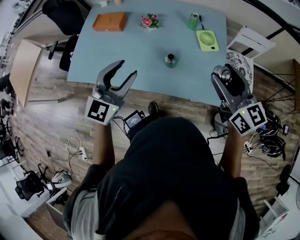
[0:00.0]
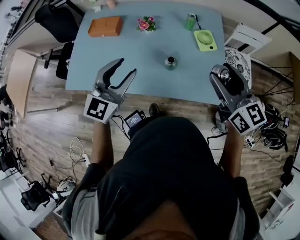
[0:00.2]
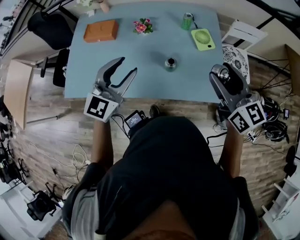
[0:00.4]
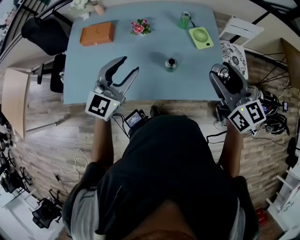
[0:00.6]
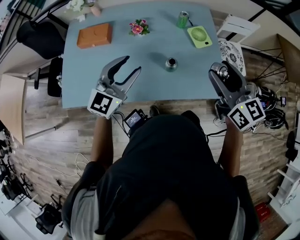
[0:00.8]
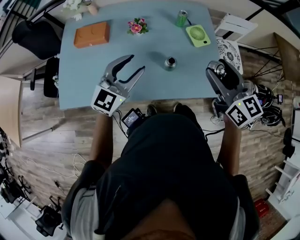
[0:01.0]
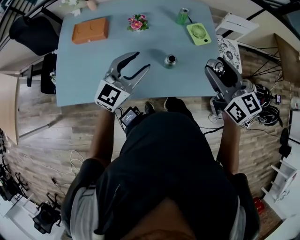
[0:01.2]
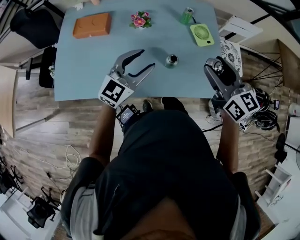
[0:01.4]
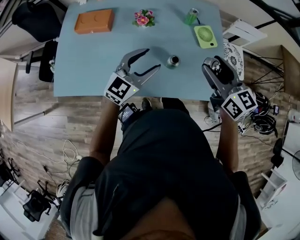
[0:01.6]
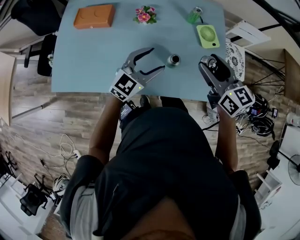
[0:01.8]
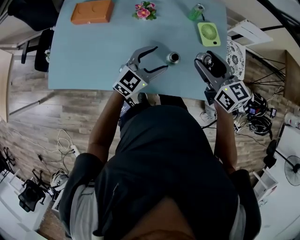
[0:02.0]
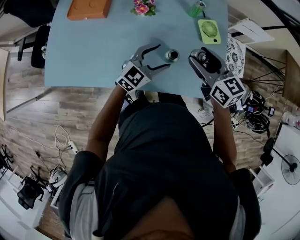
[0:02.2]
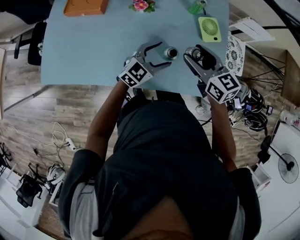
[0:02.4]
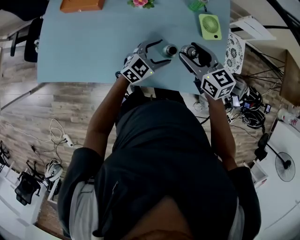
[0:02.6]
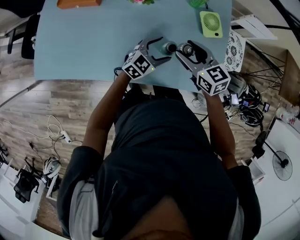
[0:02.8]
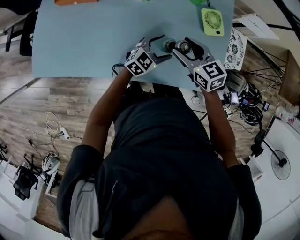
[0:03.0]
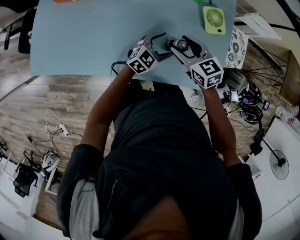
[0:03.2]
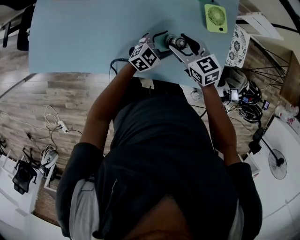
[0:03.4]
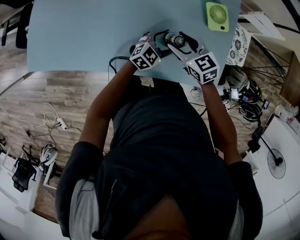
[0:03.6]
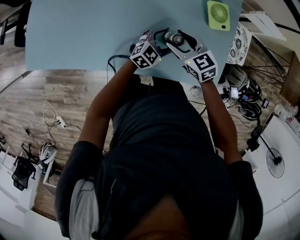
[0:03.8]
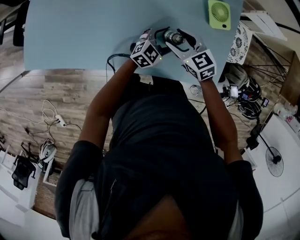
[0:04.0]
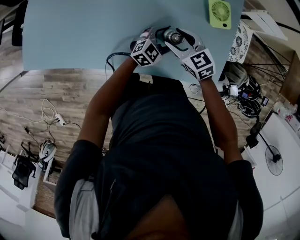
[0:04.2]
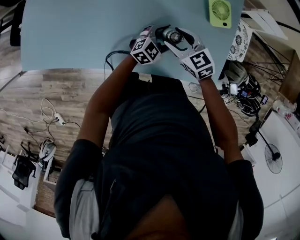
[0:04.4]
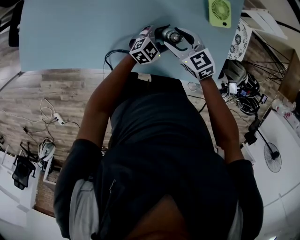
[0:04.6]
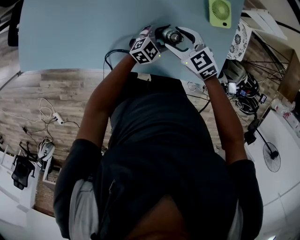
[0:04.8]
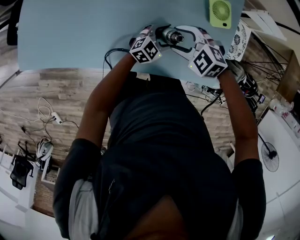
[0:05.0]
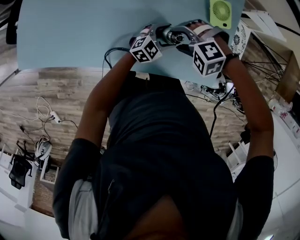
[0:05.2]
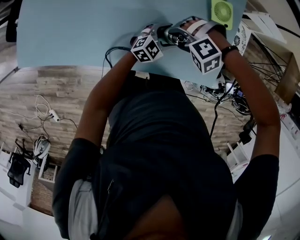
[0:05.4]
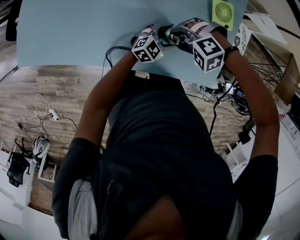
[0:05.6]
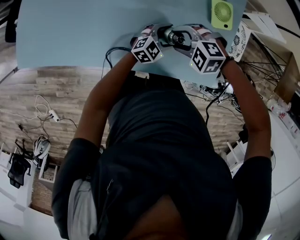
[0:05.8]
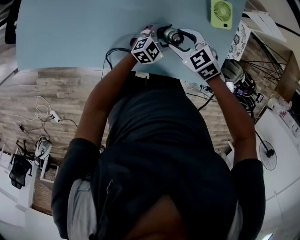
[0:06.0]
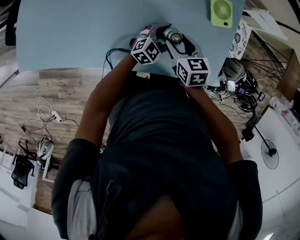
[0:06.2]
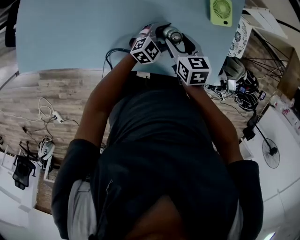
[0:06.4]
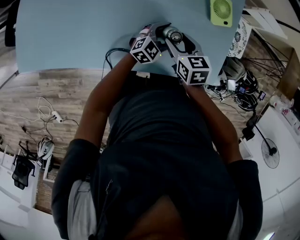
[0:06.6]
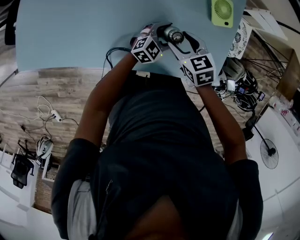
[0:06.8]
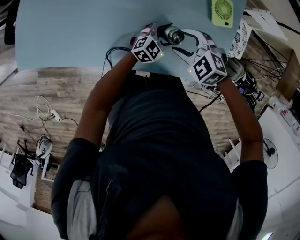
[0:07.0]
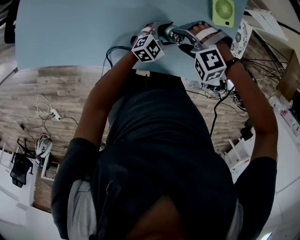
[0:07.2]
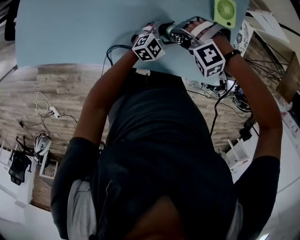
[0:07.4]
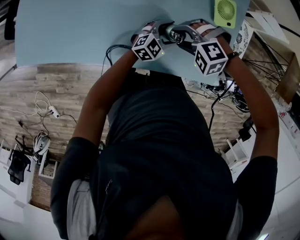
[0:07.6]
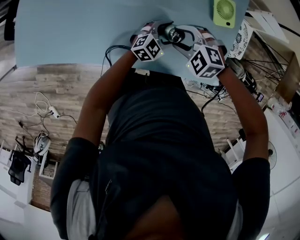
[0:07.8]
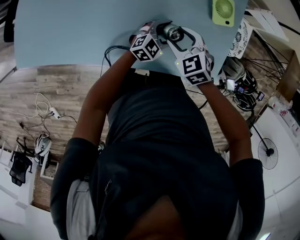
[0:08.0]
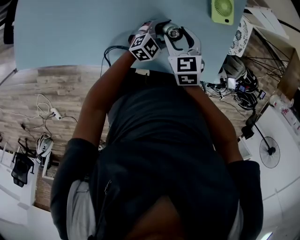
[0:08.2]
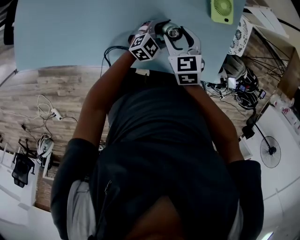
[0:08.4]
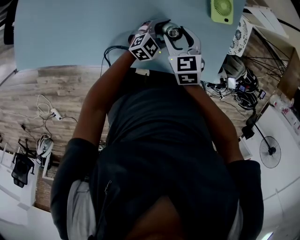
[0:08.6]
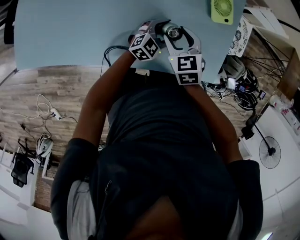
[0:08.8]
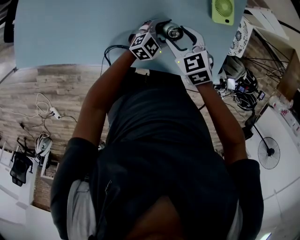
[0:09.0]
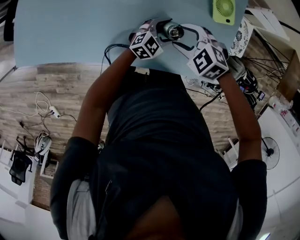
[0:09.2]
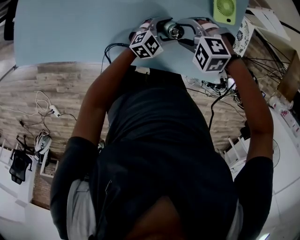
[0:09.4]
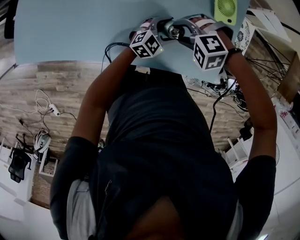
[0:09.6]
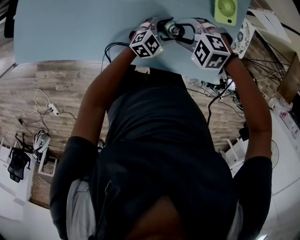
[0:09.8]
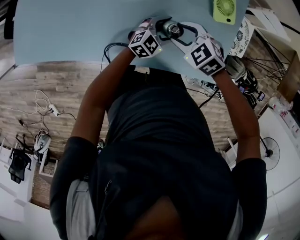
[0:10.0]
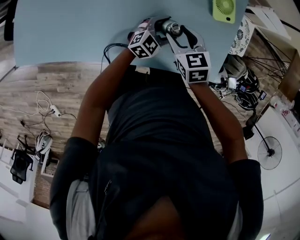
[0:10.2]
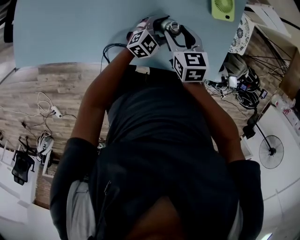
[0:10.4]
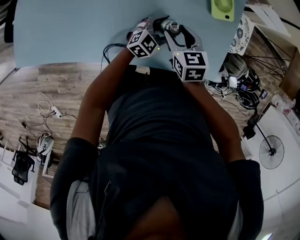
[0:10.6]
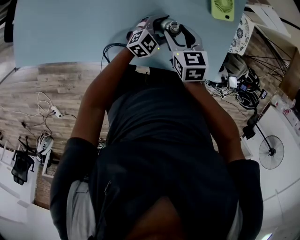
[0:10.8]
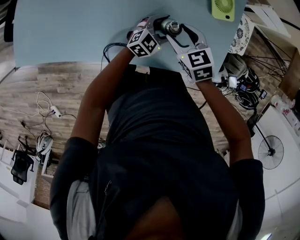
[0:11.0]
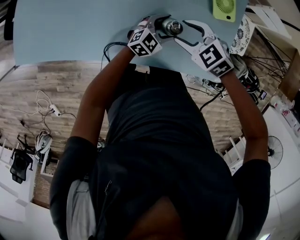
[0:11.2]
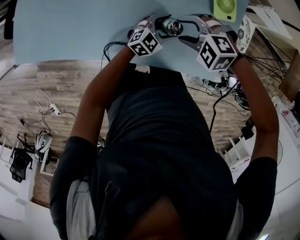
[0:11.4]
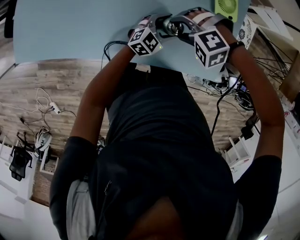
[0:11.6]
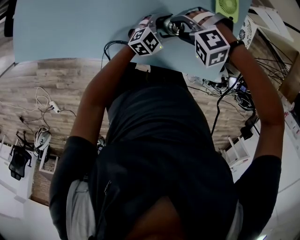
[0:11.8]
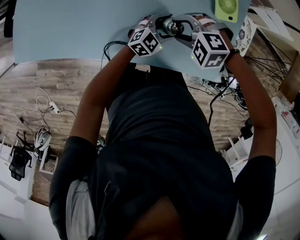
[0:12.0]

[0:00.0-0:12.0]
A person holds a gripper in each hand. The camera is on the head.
0:00.0 to 0:01.6: The left gripper heads forward and downward, covering about 15 cm, and swivels roughly 20 degrees. Meanwhile the right gripper travels to the left, forward and downward by some 15 cm.
0:01.6 to 0:03.0: The left gripper is displaced downward and to the right by approximately 25 cm. Meanwhile the right gripper shifts roughly 20 cm downward, and changes its angle by about 20 degrees.
0:03.0 to 0:04.4: The two grippers go some 10 cm downward.
0:06.0 to 0:07.6: The right gripper rolls counterclockwise, seen from behind, by about 50 degrees.
0:07.6 to 0:09.0: The right gripper rotates around the line of its fingers by some 60 degrees, clockwise from behind.
0:09.0 to 0:10.4: The right gripper swivels roughly 30 degrees.
0:10.4 to 0:12.0: The right gripper rotates around the line of its fingers by approximately 70 degrees, counterclockwise from behind.

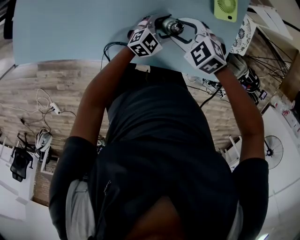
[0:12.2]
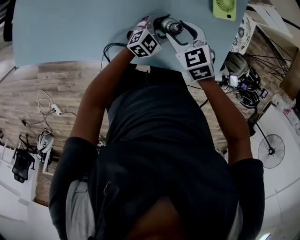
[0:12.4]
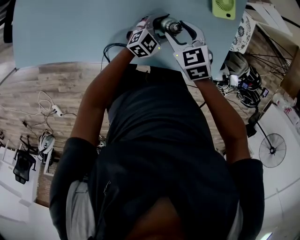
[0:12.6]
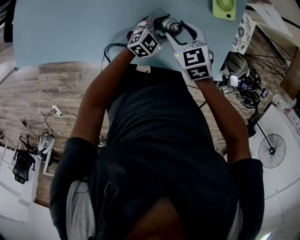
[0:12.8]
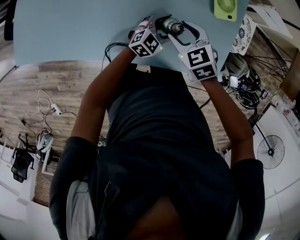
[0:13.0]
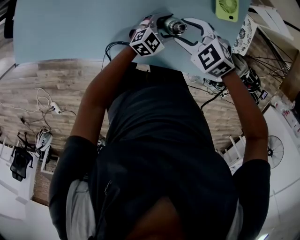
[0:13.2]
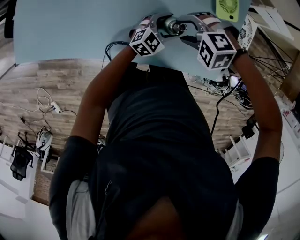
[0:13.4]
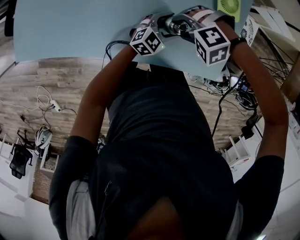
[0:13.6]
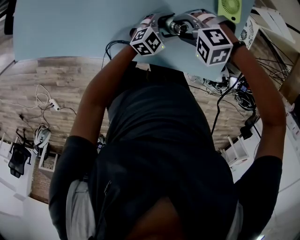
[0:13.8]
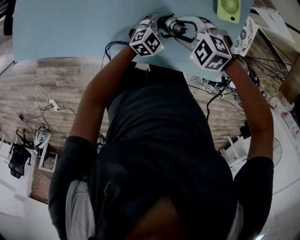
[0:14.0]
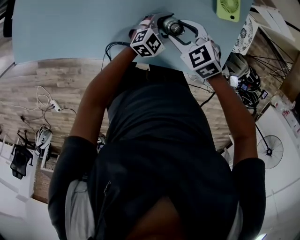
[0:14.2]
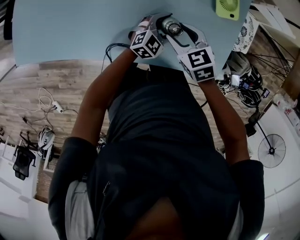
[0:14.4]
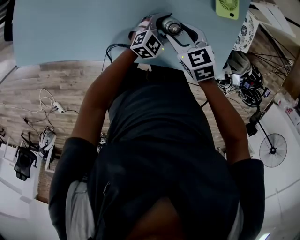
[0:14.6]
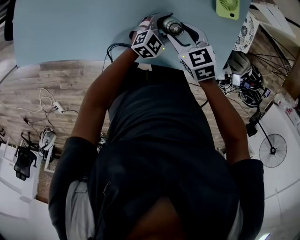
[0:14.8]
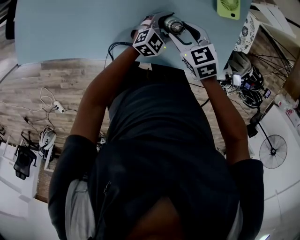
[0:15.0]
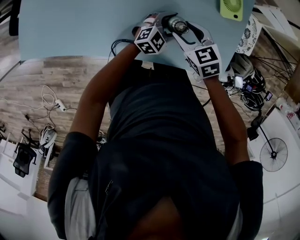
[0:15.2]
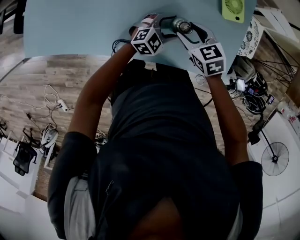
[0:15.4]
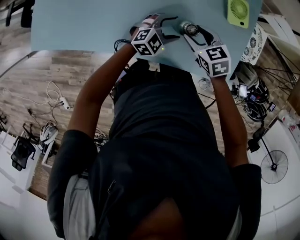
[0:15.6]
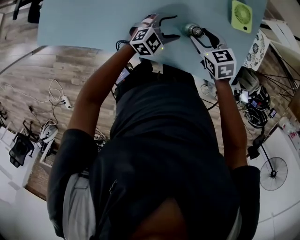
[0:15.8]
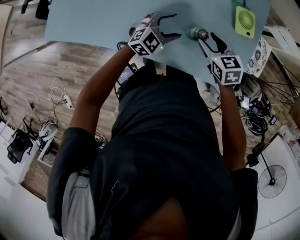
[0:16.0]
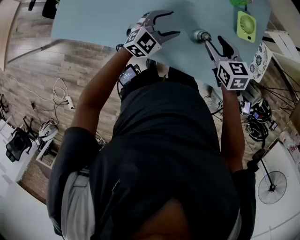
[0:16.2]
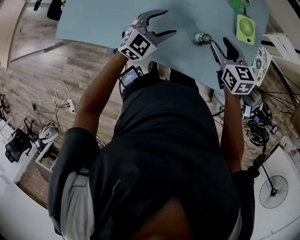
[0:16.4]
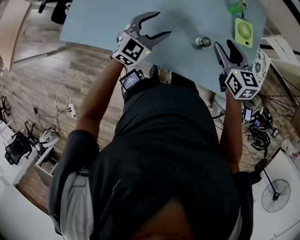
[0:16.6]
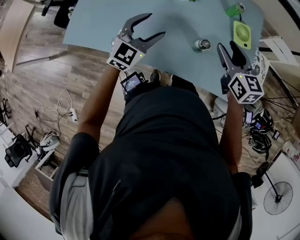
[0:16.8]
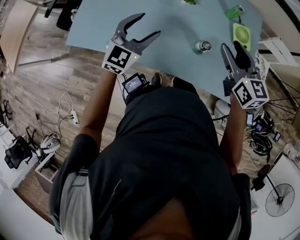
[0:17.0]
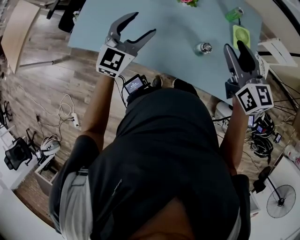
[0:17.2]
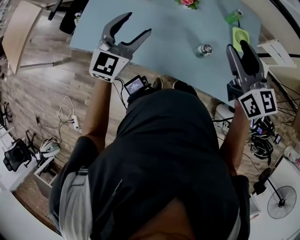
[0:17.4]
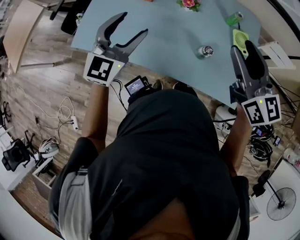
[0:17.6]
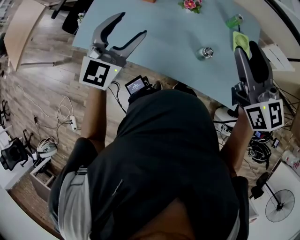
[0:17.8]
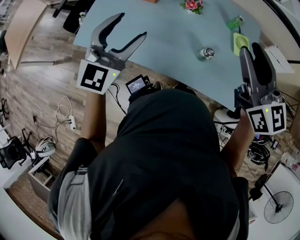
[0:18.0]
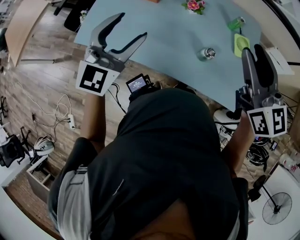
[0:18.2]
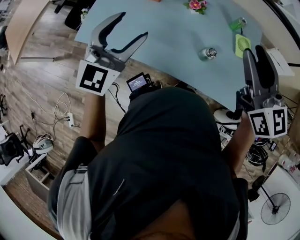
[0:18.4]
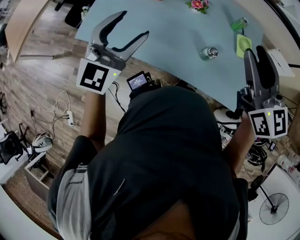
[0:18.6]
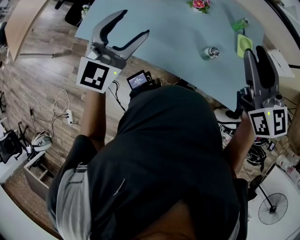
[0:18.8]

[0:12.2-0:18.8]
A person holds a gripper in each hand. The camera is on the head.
0:12.2 to 0:13.8: The right gripper swivels about 40 degrees.
0:13.8 to 0:15.4: The right gripper rotates around the line of its fingers by about 70 degrees, clockwise from behind.
0:15.4 to 0:17.2: The left gripper goes some 40 cm upward and to the left, and turns by some 40 degrees; the right gripper is displaced upward by some 30 cm, and tilts its fingers approximately 40 degrees upward.
0:17.2 to 0:18.8: The left gripper is displaced upward, backward and to the left by some 15 cm; the right gripper goes roughly 10 cm upward.

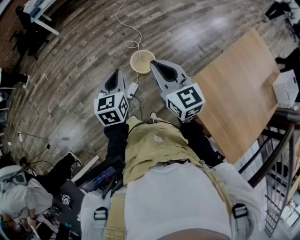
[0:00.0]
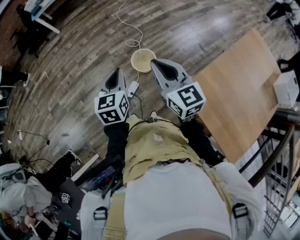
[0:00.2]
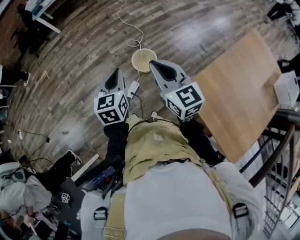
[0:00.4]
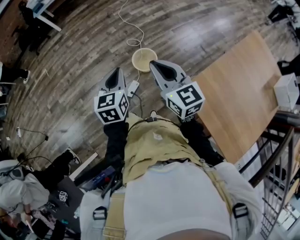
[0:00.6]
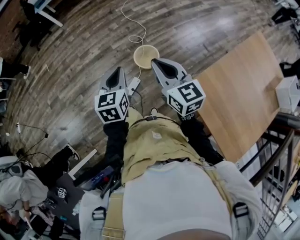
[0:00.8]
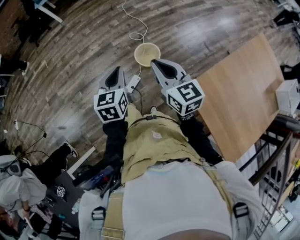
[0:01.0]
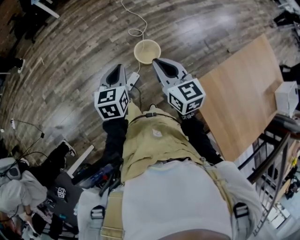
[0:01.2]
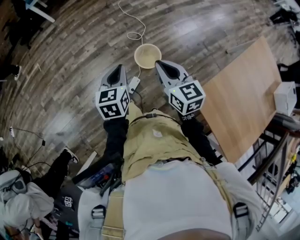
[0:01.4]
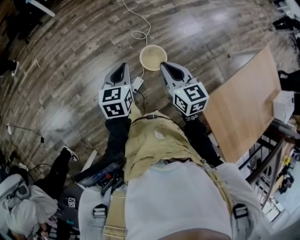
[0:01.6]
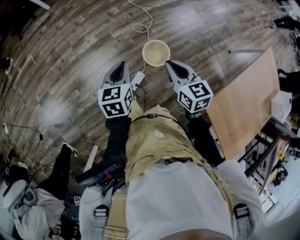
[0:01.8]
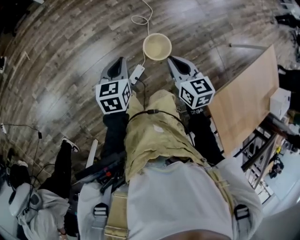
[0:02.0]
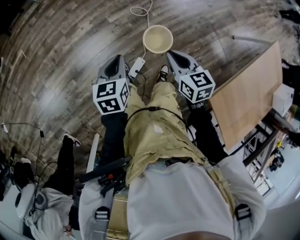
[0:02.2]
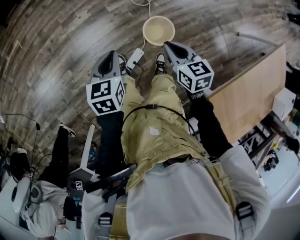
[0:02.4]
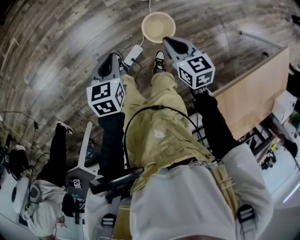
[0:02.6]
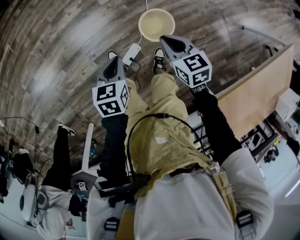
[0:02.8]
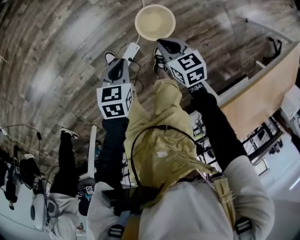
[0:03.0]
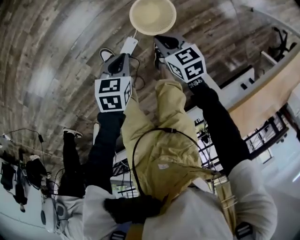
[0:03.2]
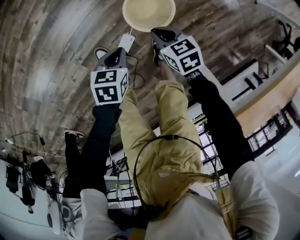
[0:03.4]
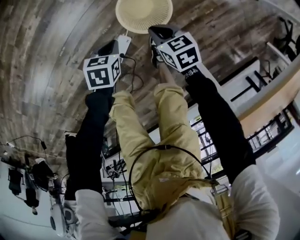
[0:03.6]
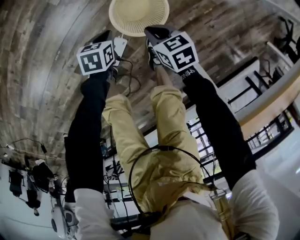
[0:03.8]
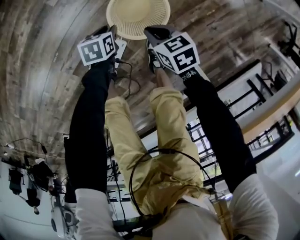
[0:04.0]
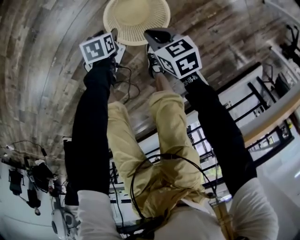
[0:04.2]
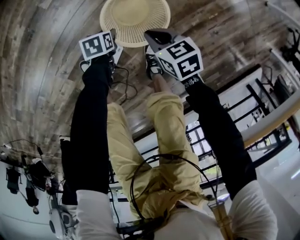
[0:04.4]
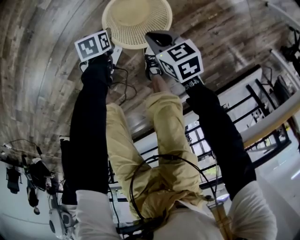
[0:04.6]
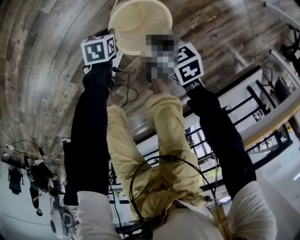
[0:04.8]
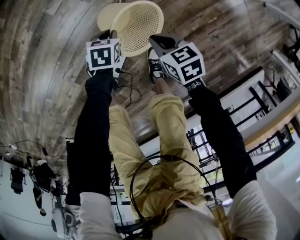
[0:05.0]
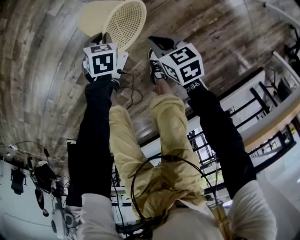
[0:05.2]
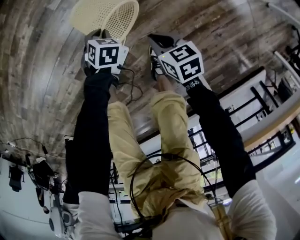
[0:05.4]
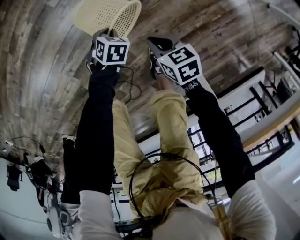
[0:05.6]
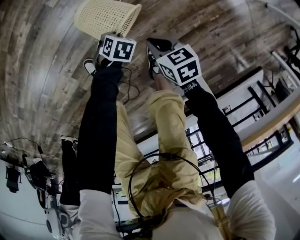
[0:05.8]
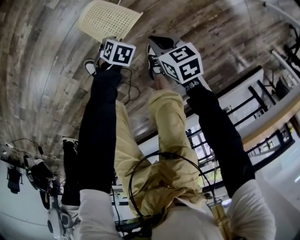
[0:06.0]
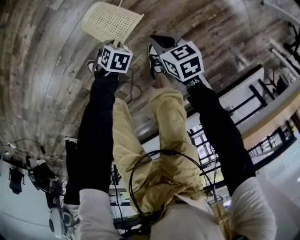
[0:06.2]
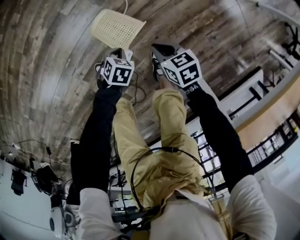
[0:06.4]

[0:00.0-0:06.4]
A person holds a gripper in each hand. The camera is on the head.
0:00.0 to 0:01.6: The left gripper is displaced forward, to the left and downward by about 20 cm. Meanwhile the right gripper heads forward, downward and to the left, covering some 20 cm.
0:01.6 to 0:03.2: Both grippers travel together downward, some 40 cm. The left gripper swivels some 40 degrees. The right gripper tips its fingers downward by roughly 30 degrees.
0:03.2 to 0:04.8: The right gripper travels downward by about 20 cm, while the left gripper travels downward by roughly 35 cm, and opens, then closes again.
0:04.8 to 0:06.4: The left gripper moves up and down over some 15 cm, changing direction 2 times, and swivels about 30 degrees, while the right gripper moves upward, some 10 cm.
